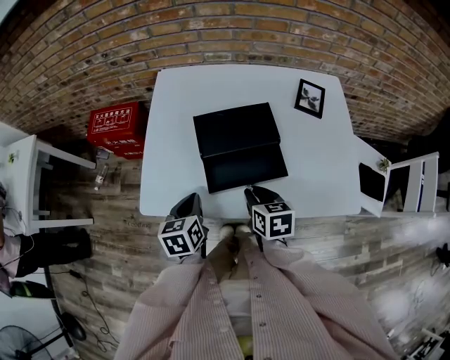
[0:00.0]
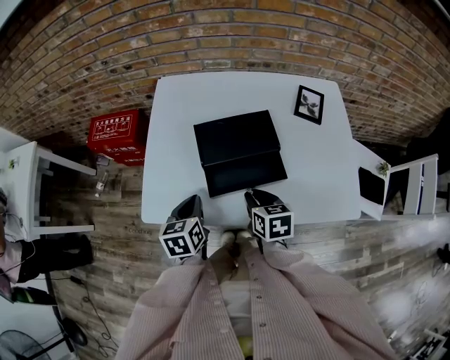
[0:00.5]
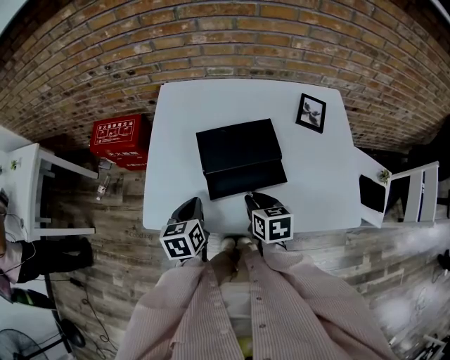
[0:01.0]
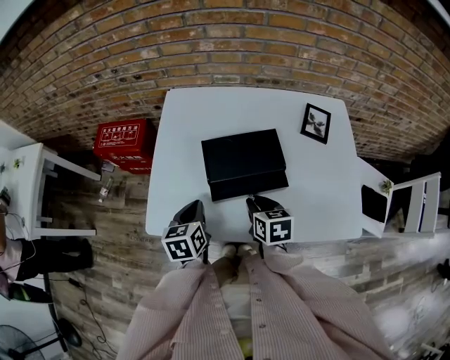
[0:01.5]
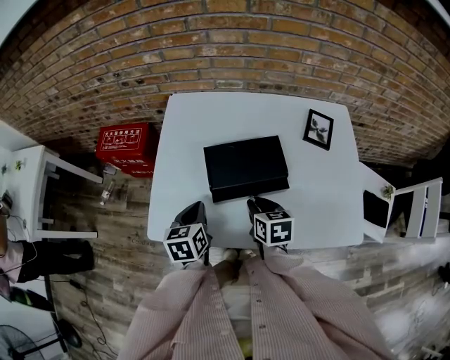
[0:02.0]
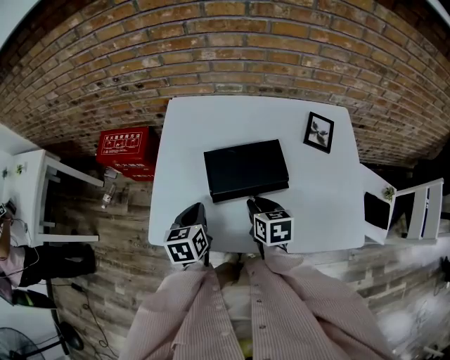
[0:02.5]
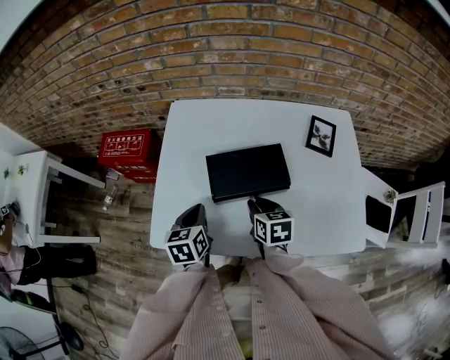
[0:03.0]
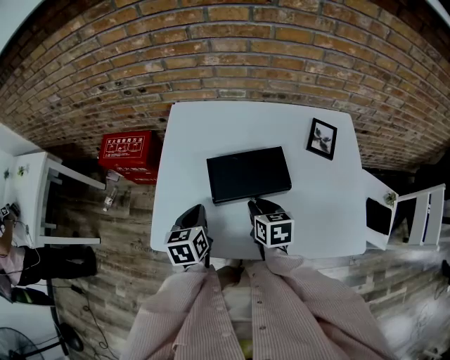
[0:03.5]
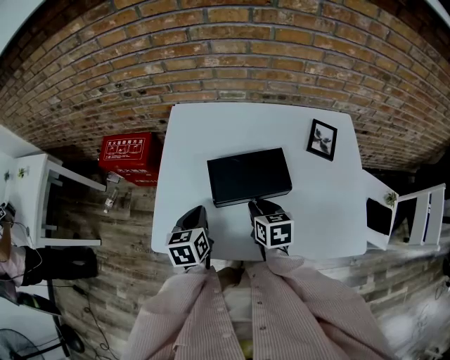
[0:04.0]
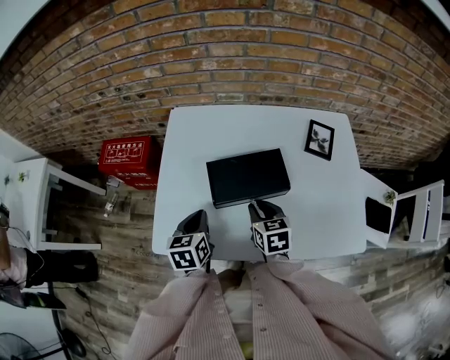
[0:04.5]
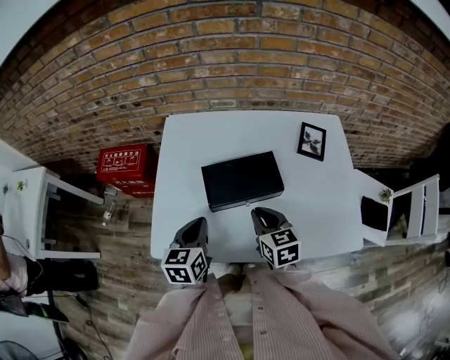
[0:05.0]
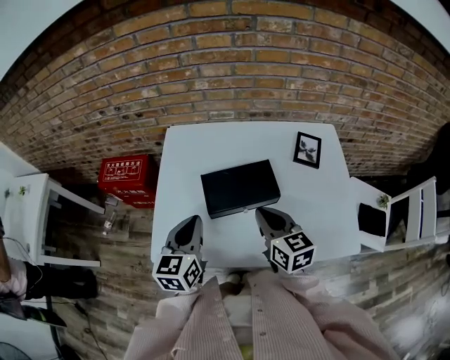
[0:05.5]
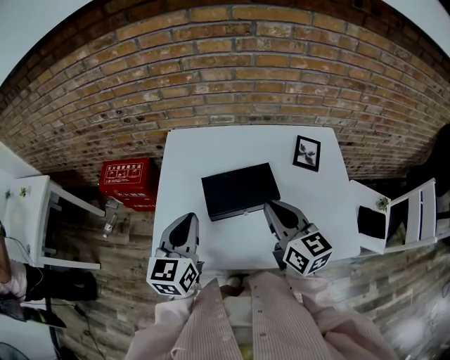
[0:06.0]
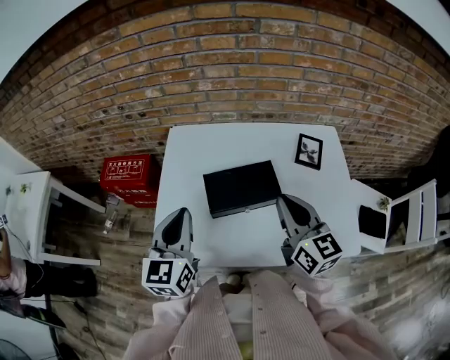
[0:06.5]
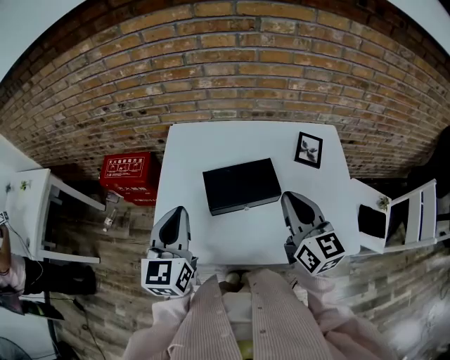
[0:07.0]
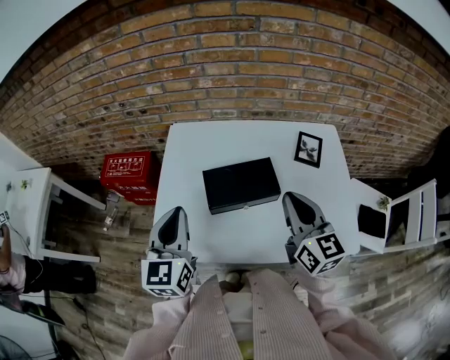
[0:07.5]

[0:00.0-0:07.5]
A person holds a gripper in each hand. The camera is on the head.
0:00.0 to 0:02.0: Both grippers move forward, approximately 5 cm.
0:02.0 to 0:04.0: The grippers make only small movements.
0:04.0 to 0:05.5: Both grippers travel together upward, about 10 cm. The right gripper changes its angle by about 20 degrees; the left gripper rotates some 20 degrees.
0:05.5 to 0:07.5: The left gripper heads upward, covering some 10 cm. Meanwhile the right gripper is displaced upward and to the right by approximately 10 cm.

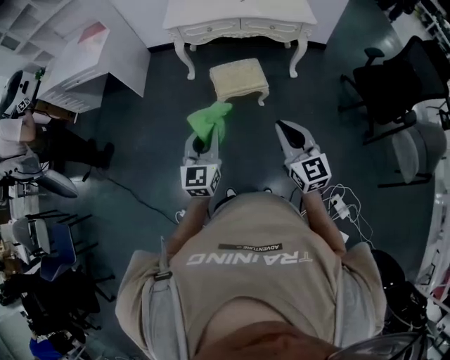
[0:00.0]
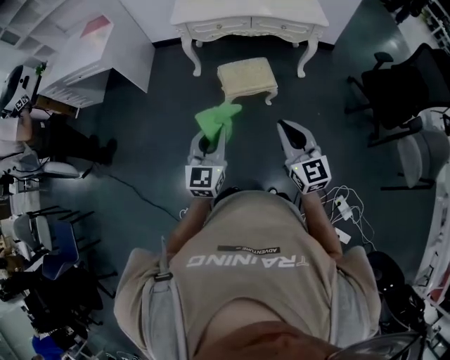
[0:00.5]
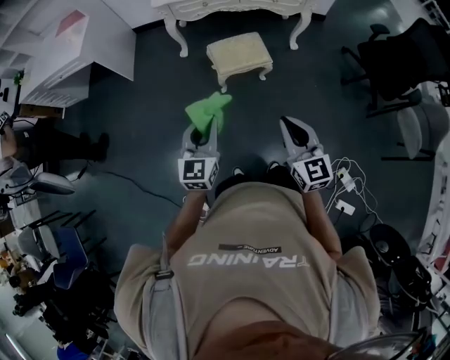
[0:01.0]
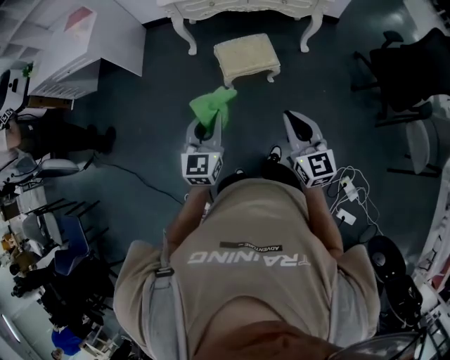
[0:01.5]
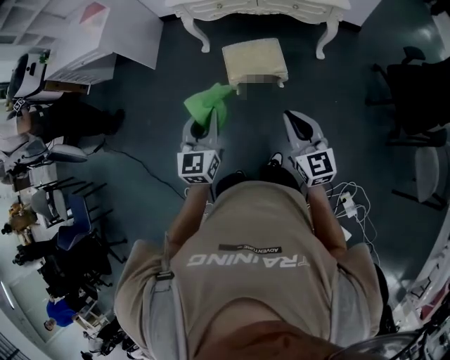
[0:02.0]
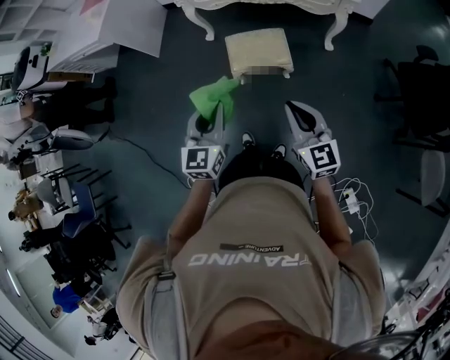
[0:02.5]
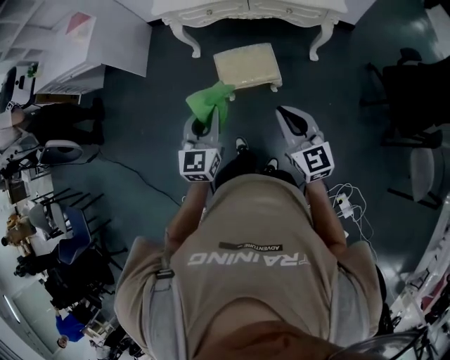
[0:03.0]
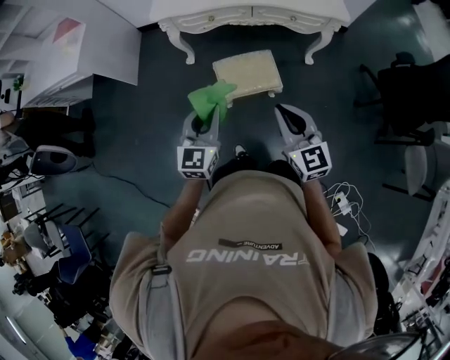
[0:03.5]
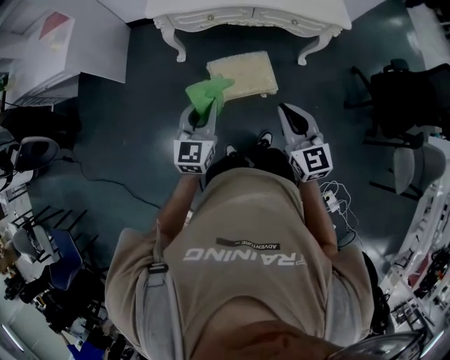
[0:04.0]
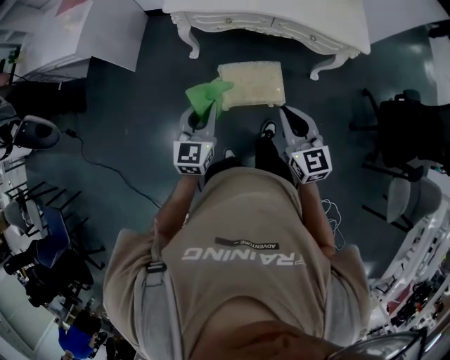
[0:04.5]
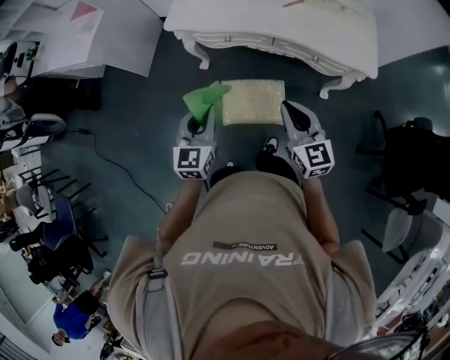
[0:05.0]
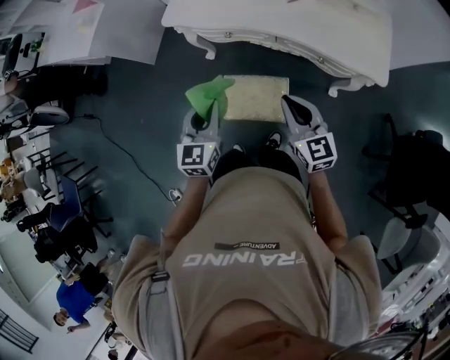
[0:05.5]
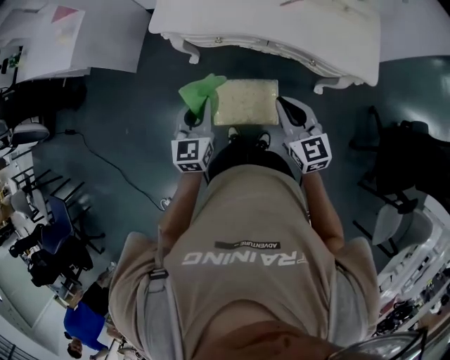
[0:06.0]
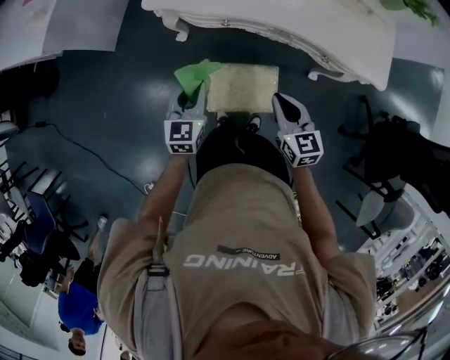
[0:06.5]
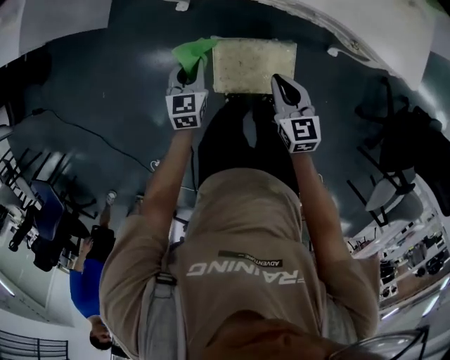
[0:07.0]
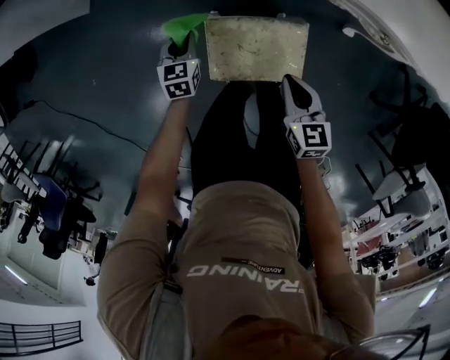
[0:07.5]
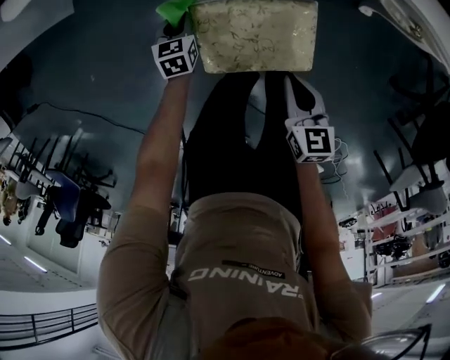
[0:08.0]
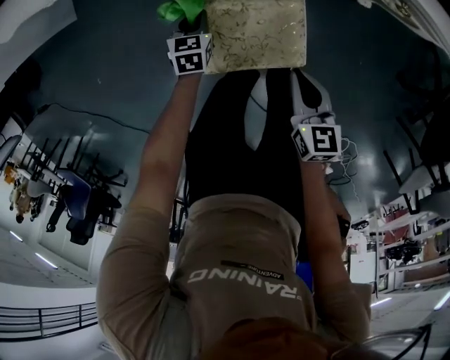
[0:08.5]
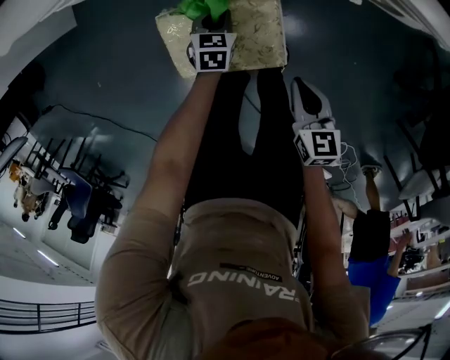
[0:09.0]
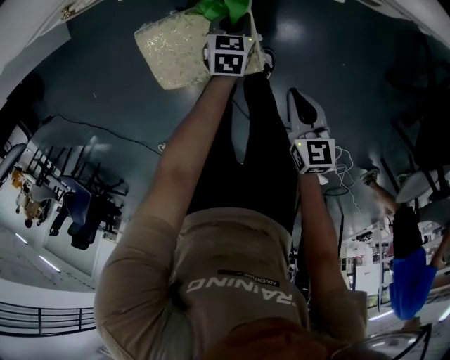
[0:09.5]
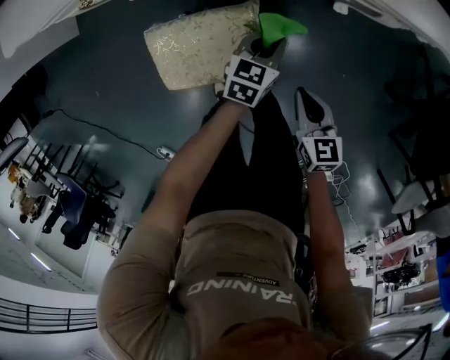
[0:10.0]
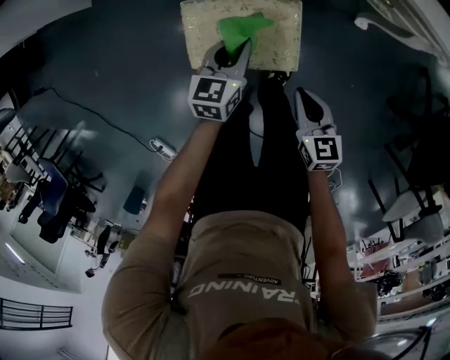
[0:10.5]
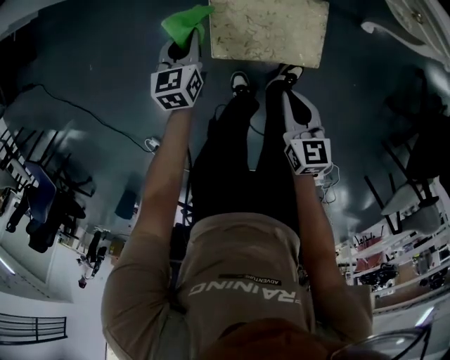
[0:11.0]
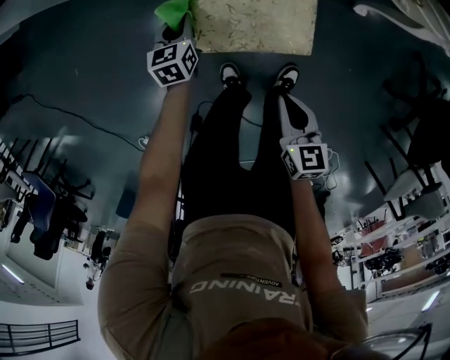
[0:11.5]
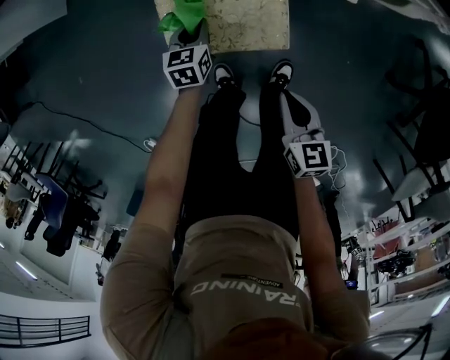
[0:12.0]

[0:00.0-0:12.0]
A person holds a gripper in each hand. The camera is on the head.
0:00.0 to 0:02.0: The left gripper is displaced forward by roughly 20 cm, while the right gripper shifts approximately 20 cm forward, to the right and downward.
0:02.0 to 0:04.0: The left gripper heads forward, covering some 25 cm; the right gripper goes some 25 cm forward and to the left.
0:04.0 to 0:06.0: Both grippers move forward and to the right, some 30 cm. The left gripper swivels roughly 20 degrees.
0:06.0 to 0:08.0: The grippers both shift downward by roughly 60 cm. The left gripper points its fingers approximately 40 degrees further downward. Meanwhile the right gripper changes its angle by roughly 40 degrees.
0:08.0 to 0:10.0: The left gripper shifts some 50 cm to the right, and swivels roughly 30 degrees; the right gripper moves to the right, roughly 25 cm.
0:10.0 to 0:12.0: The left gripper is displaced to the left by some 30 cm, and turns by approximately 30 degrees, while the right gripper moves to the left and backward, approximately 20 cm.

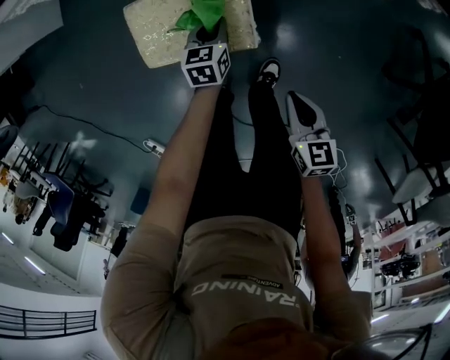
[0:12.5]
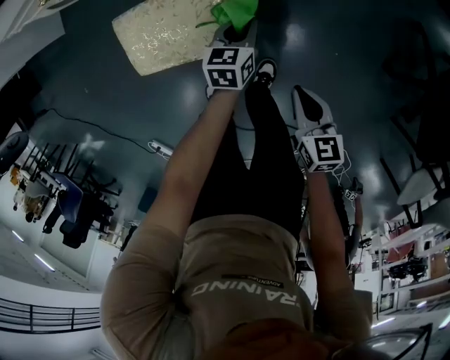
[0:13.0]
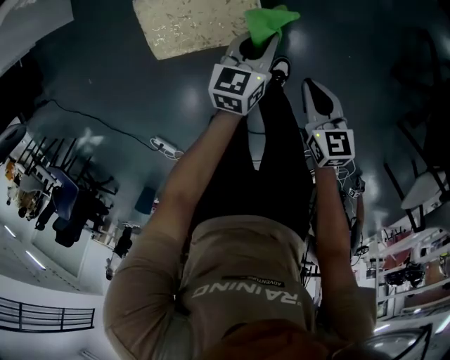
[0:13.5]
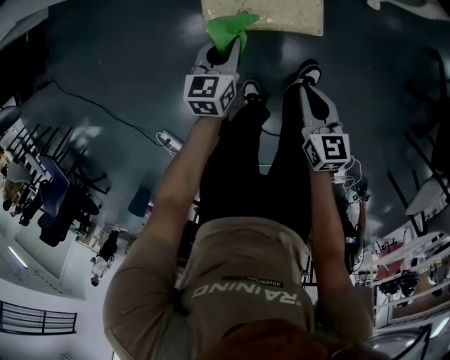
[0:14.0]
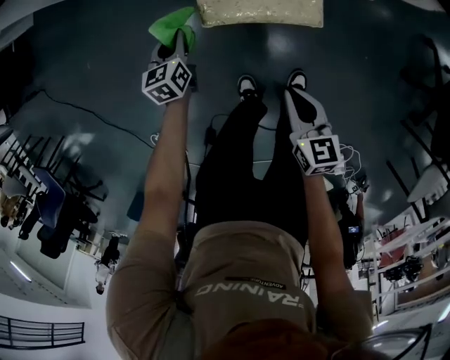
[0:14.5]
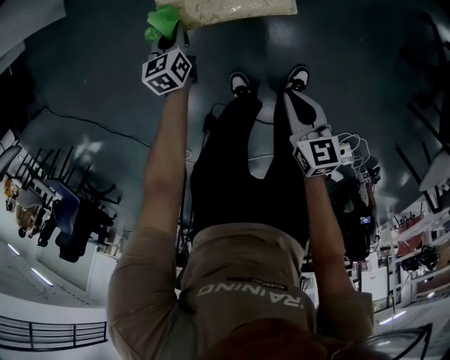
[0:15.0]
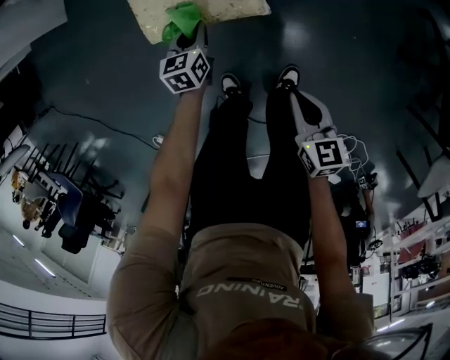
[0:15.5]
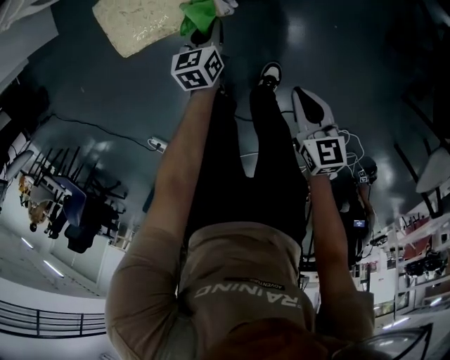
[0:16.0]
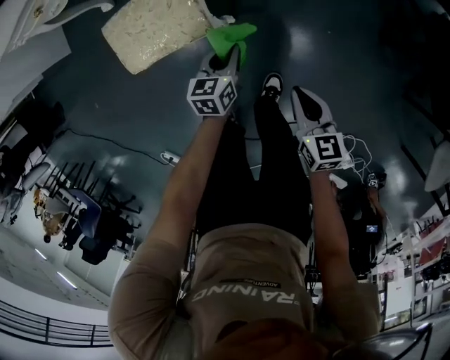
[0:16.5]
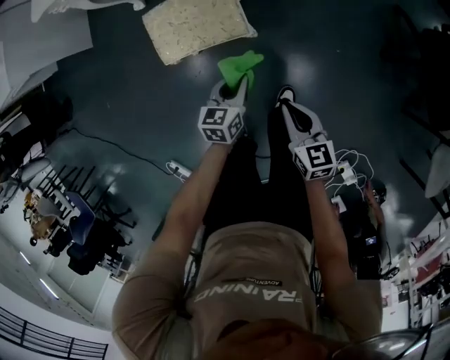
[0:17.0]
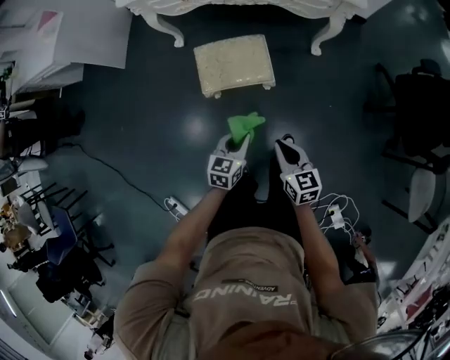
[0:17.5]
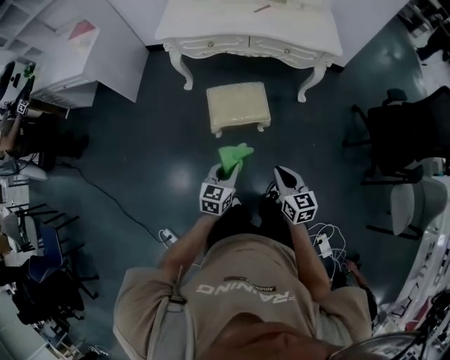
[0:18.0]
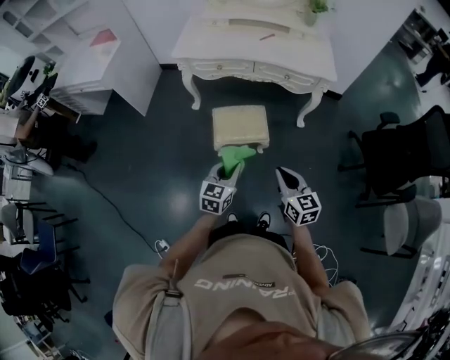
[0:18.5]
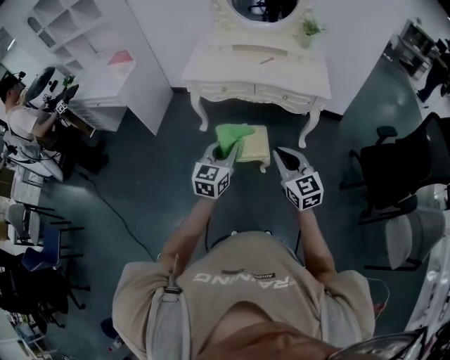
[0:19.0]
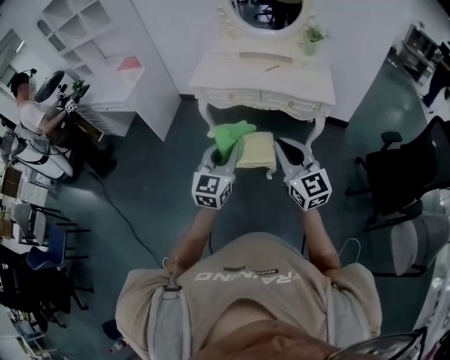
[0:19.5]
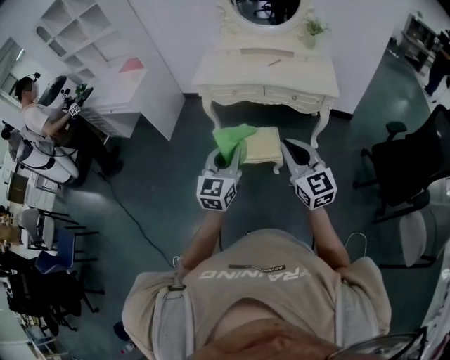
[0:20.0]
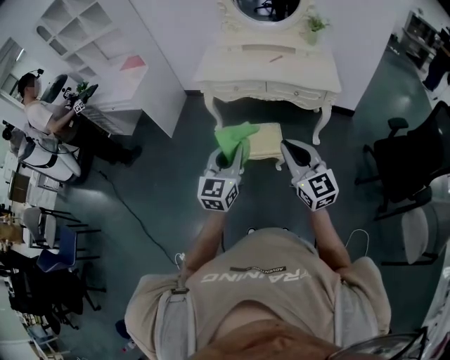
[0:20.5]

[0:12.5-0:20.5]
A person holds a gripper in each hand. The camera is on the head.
0:12.5 to 0:14.5: The two grippers go roughly 30 cm to the left.
0:14.5 to 0:16.5: The grippers both shift to the right by roughly 40 cm. The left gripper swivels about 30 degrees.
0:16.5 to 0:18.5: The left gripper travels upward, backward and to the left by about 70 cm, and changes its angle by approximately 30 degrees, while the right gripper goes about 60 cm upward, to the left and backward, and changes its angle by some 30 degrees.
0:18.5 to 0:20.5: The two grippers go roughly 20 cm upward. The left gripper turns by approximately 30 degrees; the right gripper swivels about 30 degrees.
